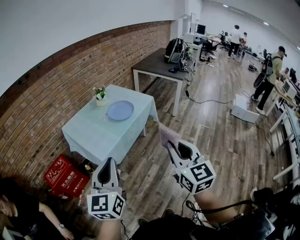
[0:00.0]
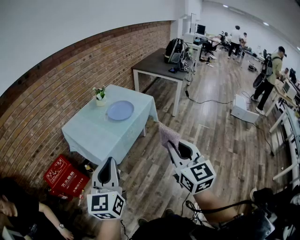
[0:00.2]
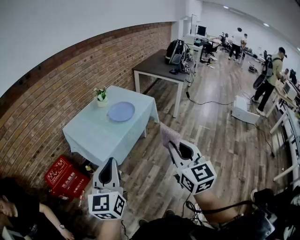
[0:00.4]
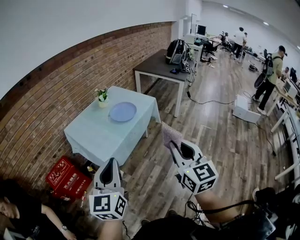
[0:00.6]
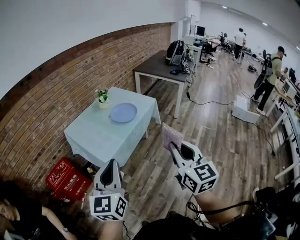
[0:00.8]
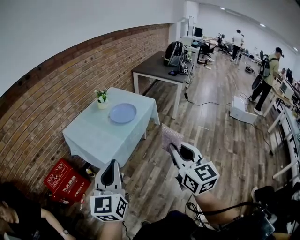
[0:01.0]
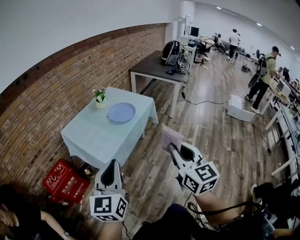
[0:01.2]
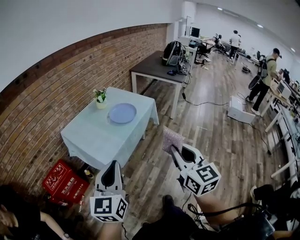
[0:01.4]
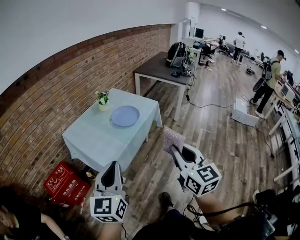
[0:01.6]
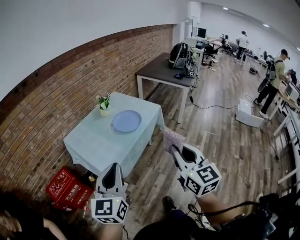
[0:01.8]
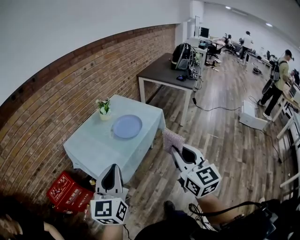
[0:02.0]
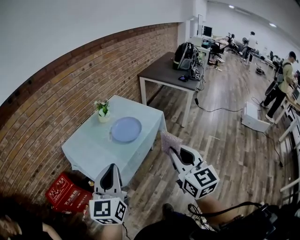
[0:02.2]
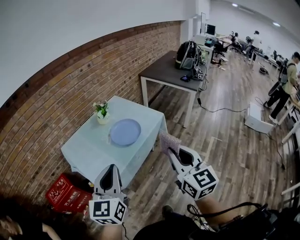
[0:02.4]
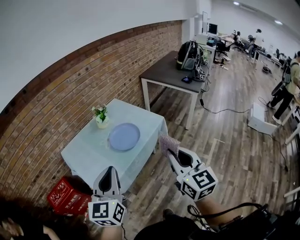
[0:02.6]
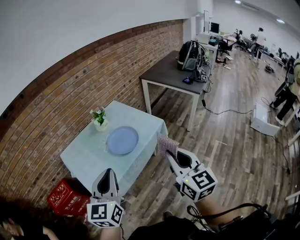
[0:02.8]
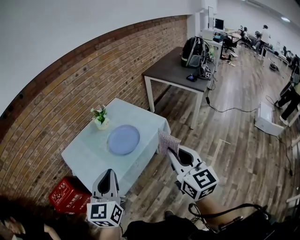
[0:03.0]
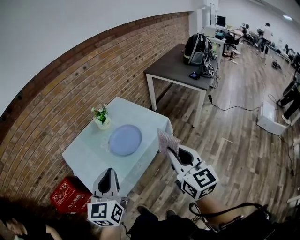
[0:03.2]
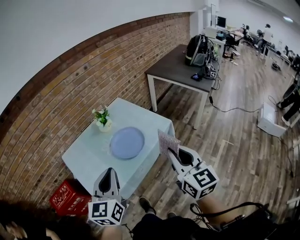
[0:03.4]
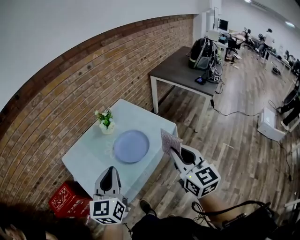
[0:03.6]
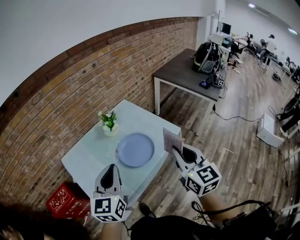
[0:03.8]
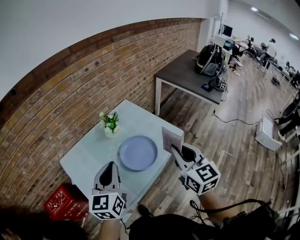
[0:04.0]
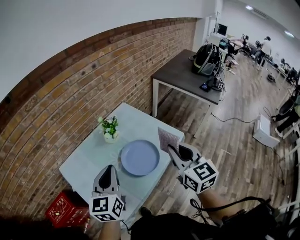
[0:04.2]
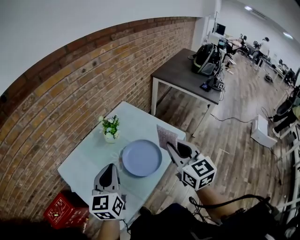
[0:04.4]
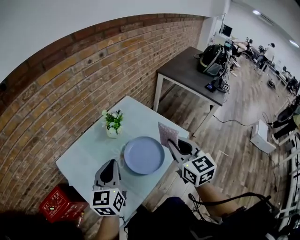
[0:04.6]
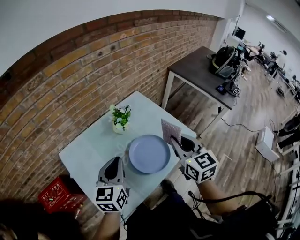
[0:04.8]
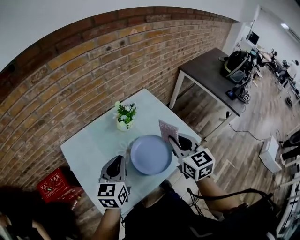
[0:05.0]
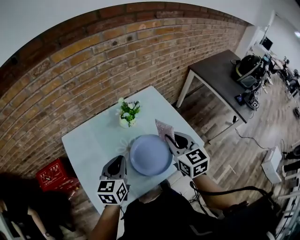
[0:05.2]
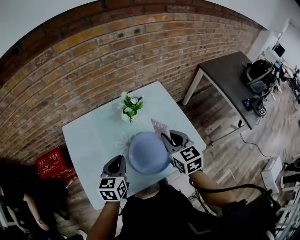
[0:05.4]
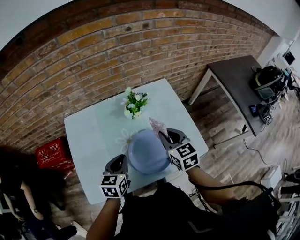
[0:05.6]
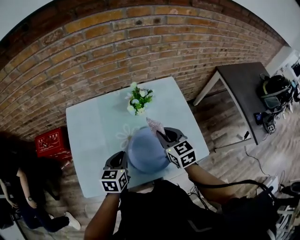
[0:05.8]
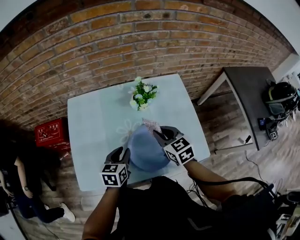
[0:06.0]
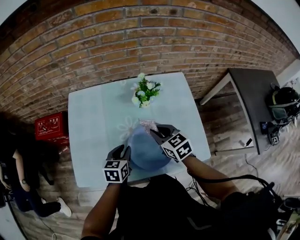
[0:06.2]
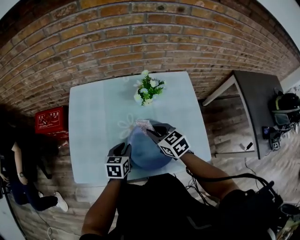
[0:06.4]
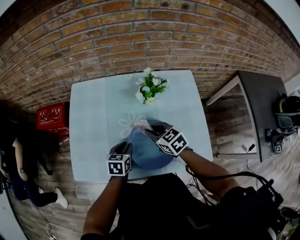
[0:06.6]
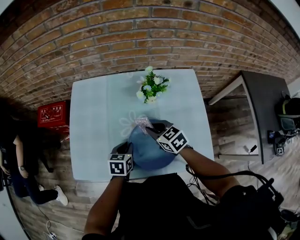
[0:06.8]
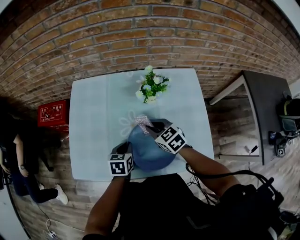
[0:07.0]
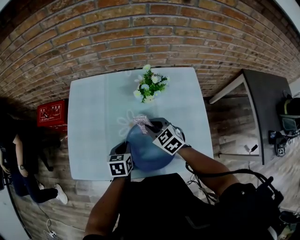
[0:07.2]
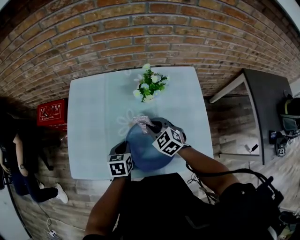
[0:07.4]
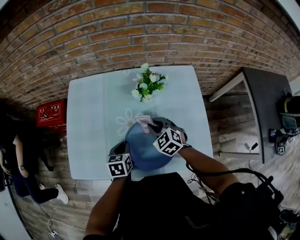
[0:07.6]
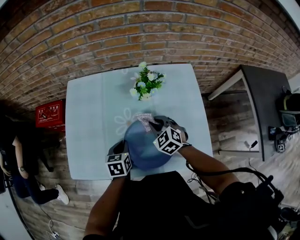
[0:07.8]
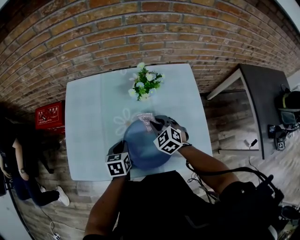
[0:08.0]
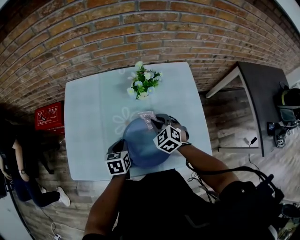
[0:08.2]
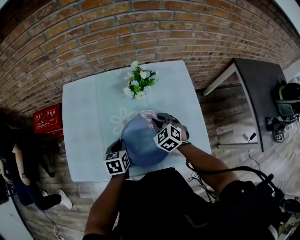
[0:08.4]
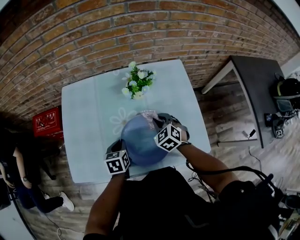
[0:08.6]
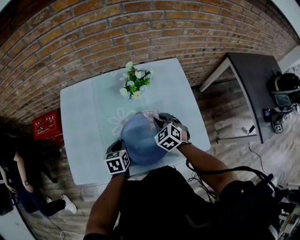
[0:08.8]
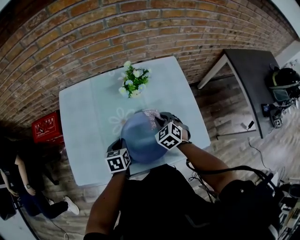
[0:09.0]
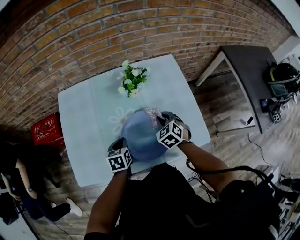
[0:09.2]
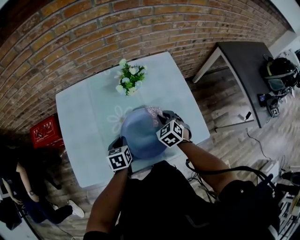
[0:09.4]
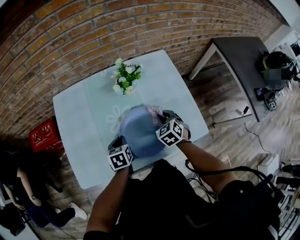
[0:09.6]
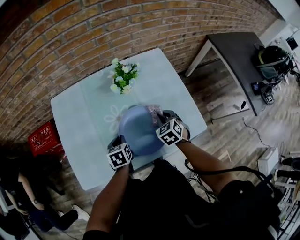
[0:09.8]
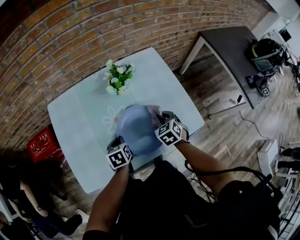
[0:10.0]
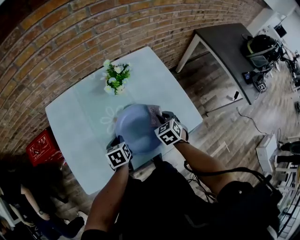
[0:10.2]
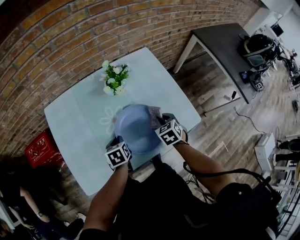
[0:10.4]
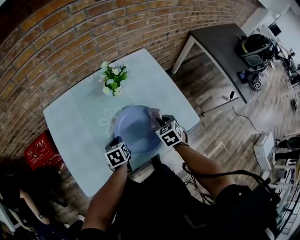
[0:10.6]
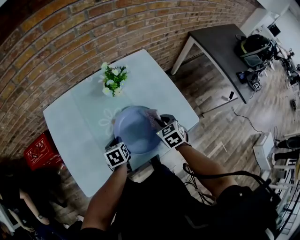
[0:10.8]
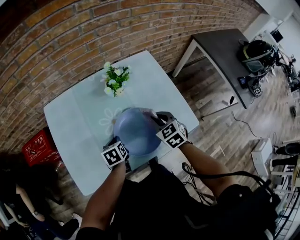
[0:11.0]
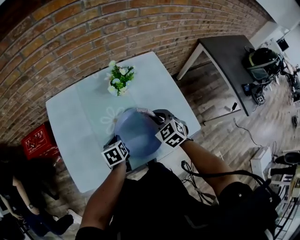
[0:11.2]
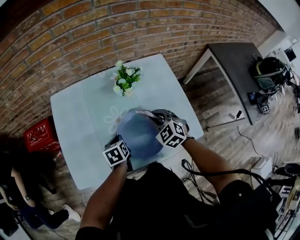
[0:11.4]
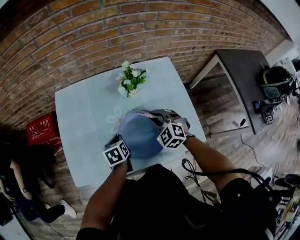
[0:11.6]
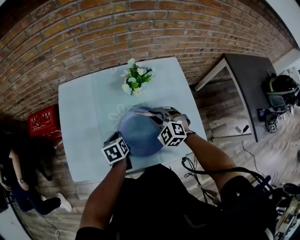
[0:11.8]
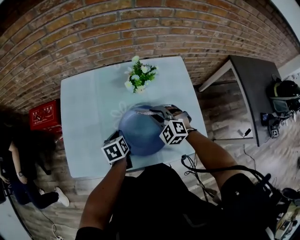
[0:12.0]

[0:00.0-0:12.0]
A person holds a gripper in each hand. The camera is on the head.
0:00.0 to 0:01.6: The left gripper is displaced forward by roughly 5 cm; the right gripper moves roughly 5 cm.
0:01.6 to 0:03.0: The grippers both shift forward and to the right by approximately 25 cm.
0:03.0 to 0:04.4: Both grippers travel together forward and to the left, about 30 cm.
0:04.4 to 0:06.0: Both grippers move downward, roughly 20 cm. The right gripper changes its angle by some 50 degrees. The left gripper rotates approximately 40 degrees, and opens its fingers.
0:06.0 to 0:07.6: Both grippers move downward, roughly 10 cm. The right gripper swivels approximately 30 degrees.
0:07.6 to 0:09.0: The right gripper goes some 10 cm to the right, and rotates roughly 20 degrees.
0:09.0 to 0:10.4: The right gripper heads backward and to the right, covering some 10 cm, and changes its angle by some 30 degrees.
0:10.4 to 0:12.0: The right gripper changes place by some 15 cm, and rolls counterclockwise, seen from behind, by roughly 60 degrees.

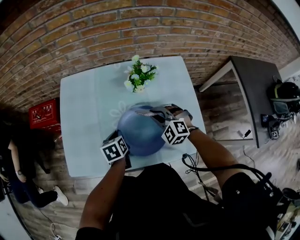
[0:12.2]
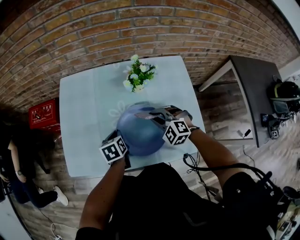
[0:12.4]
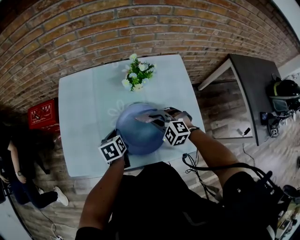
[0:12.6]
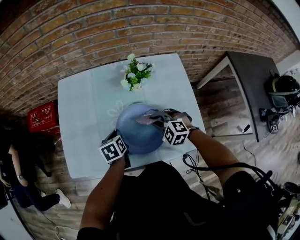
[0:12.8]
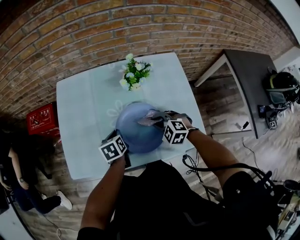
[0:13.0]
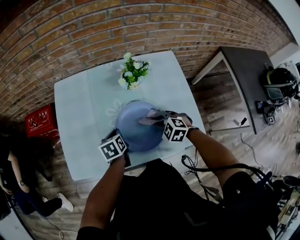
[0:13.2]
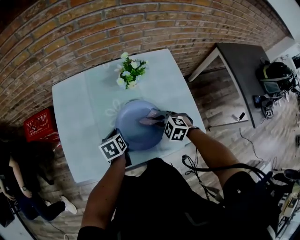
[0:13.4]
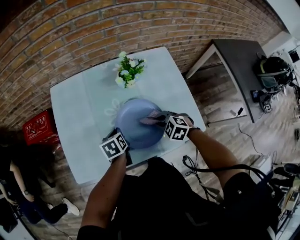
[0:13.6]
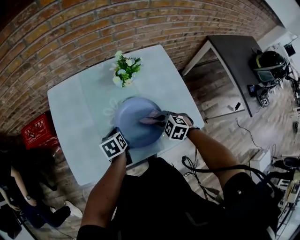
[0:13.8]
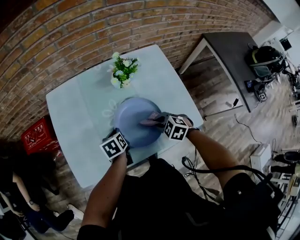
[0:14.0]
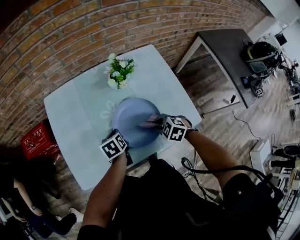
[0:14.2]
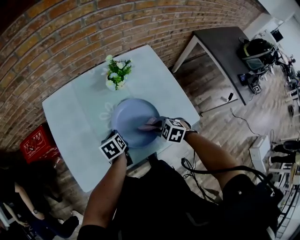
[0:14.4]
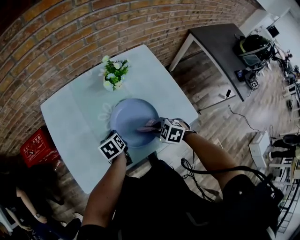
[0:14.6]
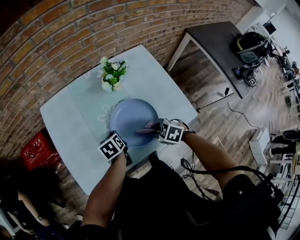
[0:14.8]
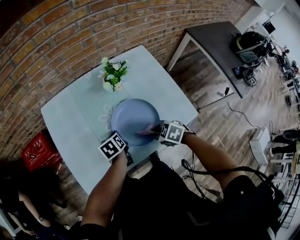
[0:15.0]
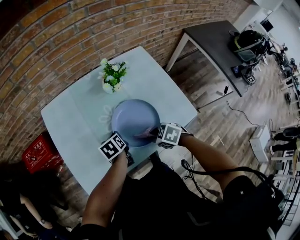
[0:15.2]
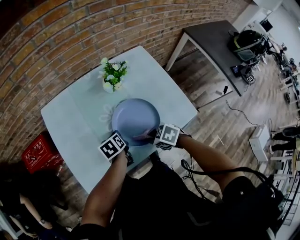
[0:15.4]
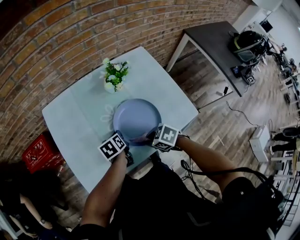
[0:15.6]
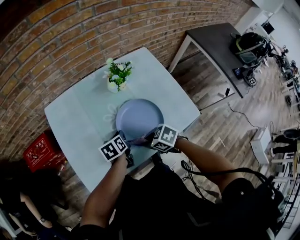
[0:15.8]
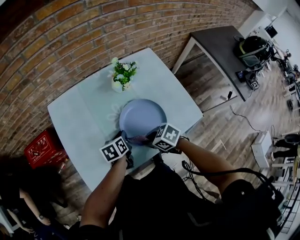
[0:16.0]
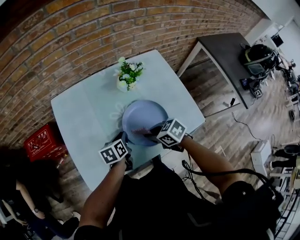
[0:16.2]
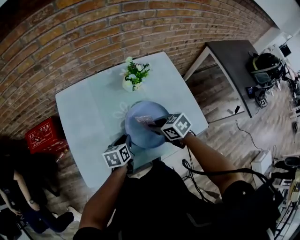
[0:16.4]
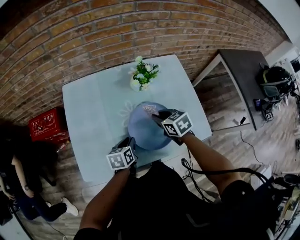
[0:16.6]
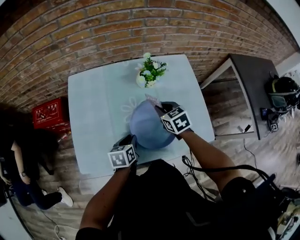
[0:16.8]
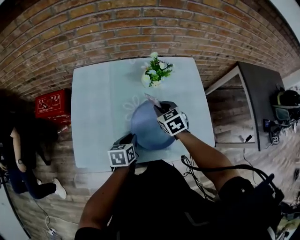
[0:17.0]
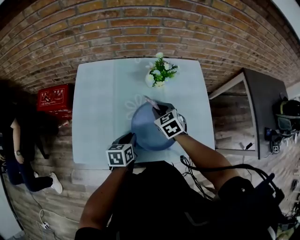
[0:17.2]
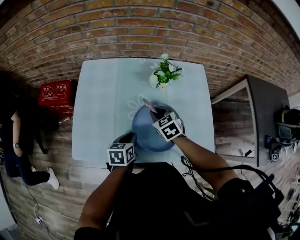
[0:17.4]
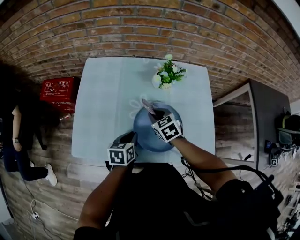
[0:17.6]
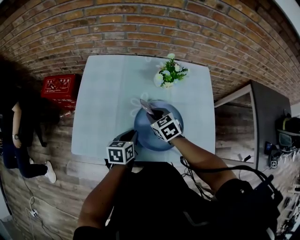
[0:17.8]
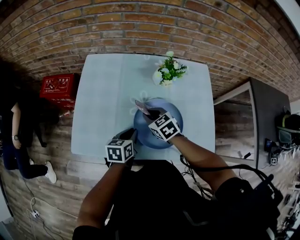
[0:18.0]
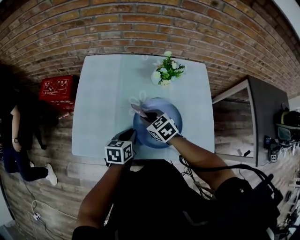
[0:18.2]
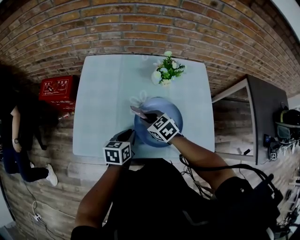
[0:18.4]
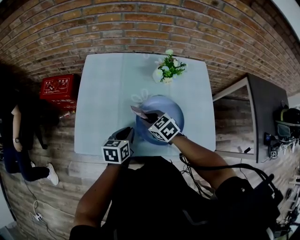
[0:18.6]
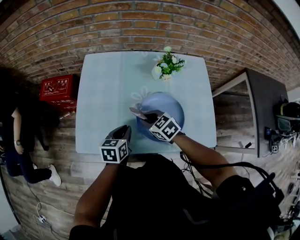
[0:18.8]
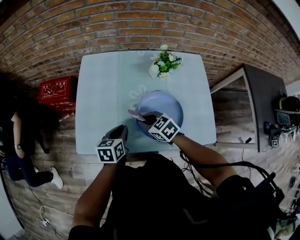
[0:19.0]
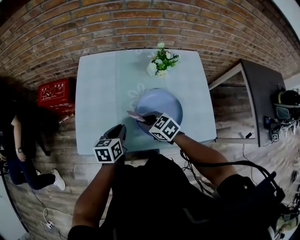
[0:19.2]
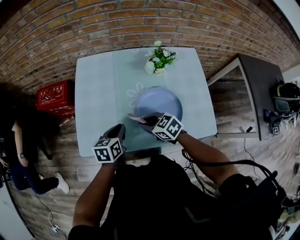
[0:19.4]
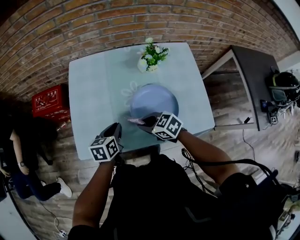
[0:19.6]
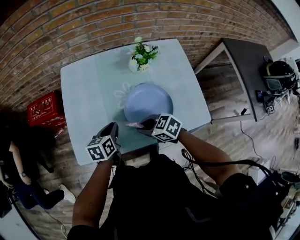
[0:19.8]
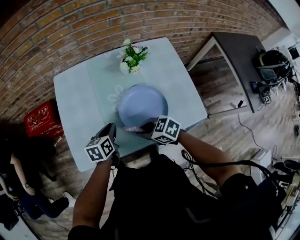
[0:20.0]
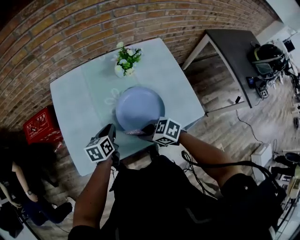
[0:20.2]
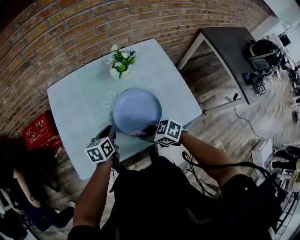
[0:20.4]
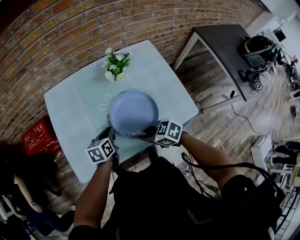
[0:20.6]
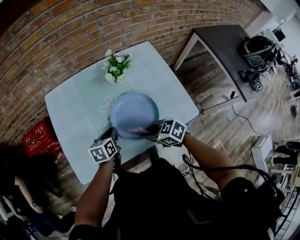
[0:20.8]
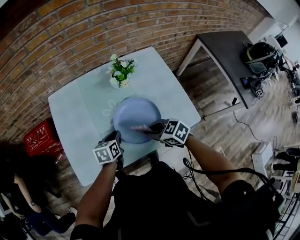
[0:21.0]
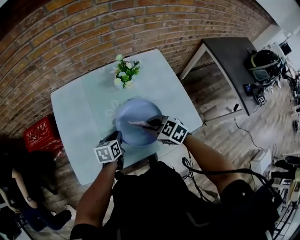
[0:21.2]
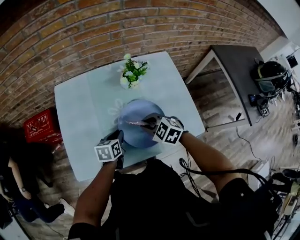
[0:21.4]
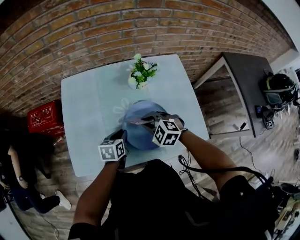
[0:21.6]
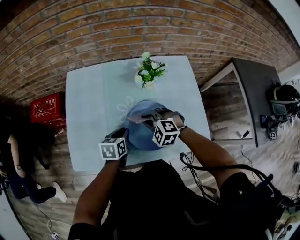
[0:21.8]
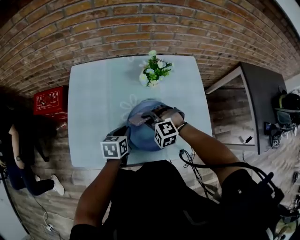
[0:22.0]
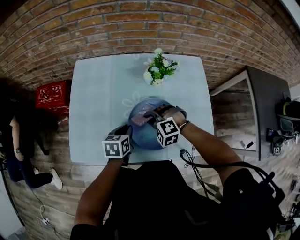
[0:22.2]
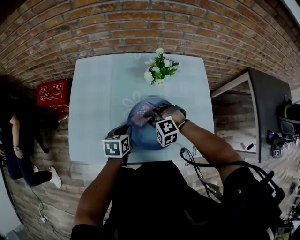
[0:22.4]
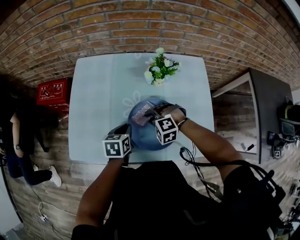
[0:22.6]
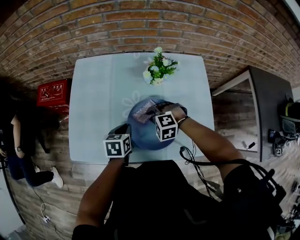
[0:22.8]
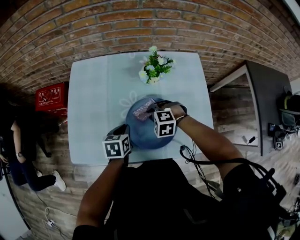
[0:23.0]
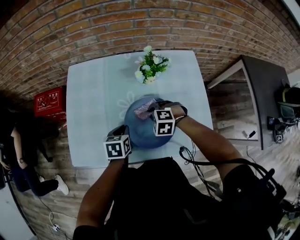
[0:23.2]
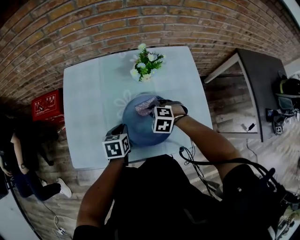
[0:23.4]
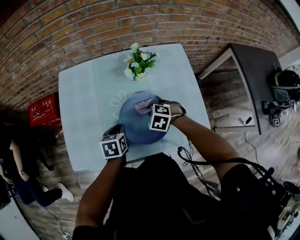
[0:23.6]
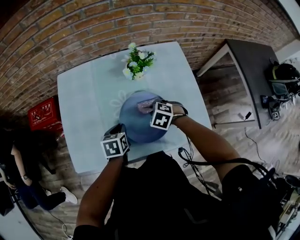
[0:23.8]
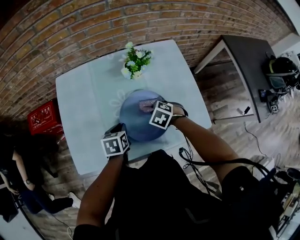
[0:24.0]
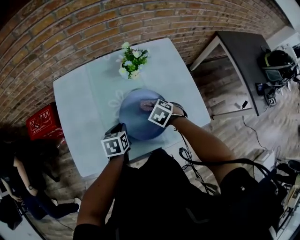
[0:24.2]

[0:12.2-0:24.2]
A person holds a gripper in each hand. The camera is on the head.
0:12.2 to 0:13.8: The right gripper moves backward, some 10 cm, and changes its angle by approximately 30 degrees.
0:13.8 to 0:15.2: The right gripper goes approximately 10 cm to the left and backward, and swivels about 30 degrees.
0:15.2 to 0:16.6: The left gripper moves backward, about 5 cm, while the right gripper travels forward and upward by about 15 cm, and swivels some 30 degrees.
0:16.6 to 0:18.2: The right gripper travels to the left and downward by about 10 cm, and changes its angle by about 30 degrees.
0:18.2 to 0:19.8: The right gripper goes roughly 10 cm backward. Meanwhile the left gripper moves to the left, some 5 cm.
0:19.8 to 0:21.2: The two grippers go about 10 cm to the right.
0:21.2 to 0:22.6: The right gripper is displaced downward and forward by roughly 10 cm, and rolls counterclockwise, seen from behind, by about 60 degrees.
0:22.6 to 0:24.2: The right gripper shifts by roughly 10 cm, and rolls clockwise, seen from behind, by about 70 degrees.
